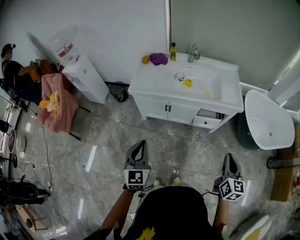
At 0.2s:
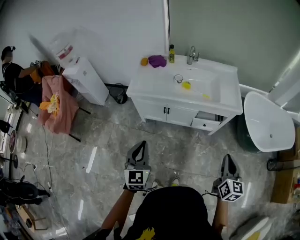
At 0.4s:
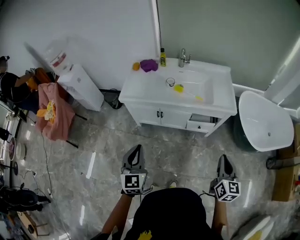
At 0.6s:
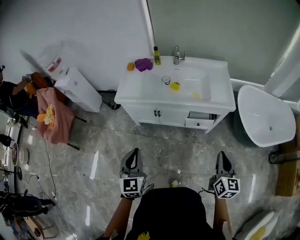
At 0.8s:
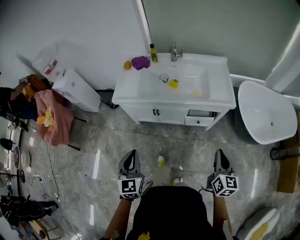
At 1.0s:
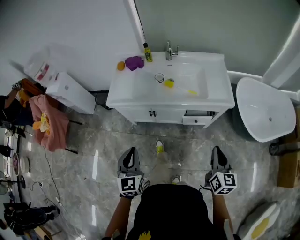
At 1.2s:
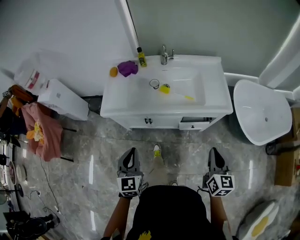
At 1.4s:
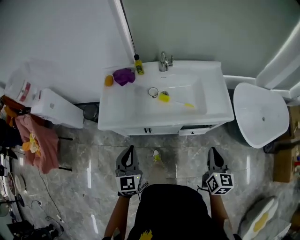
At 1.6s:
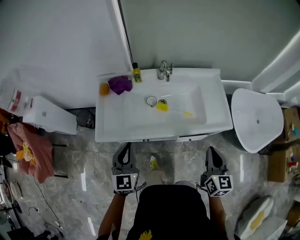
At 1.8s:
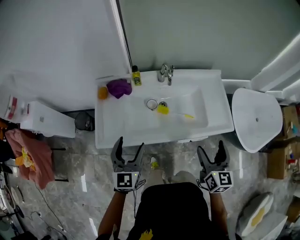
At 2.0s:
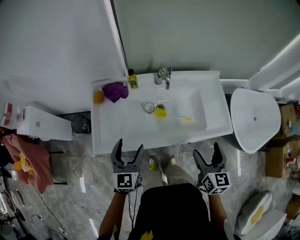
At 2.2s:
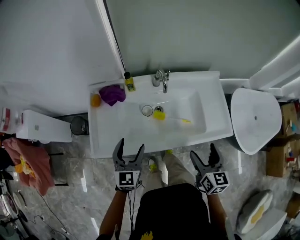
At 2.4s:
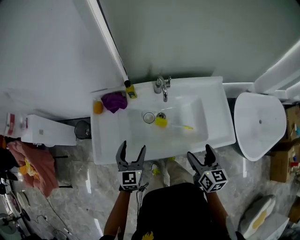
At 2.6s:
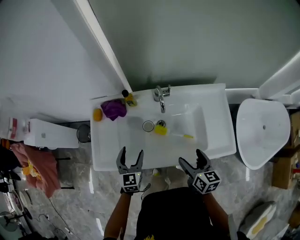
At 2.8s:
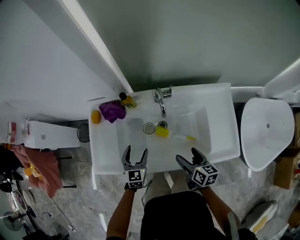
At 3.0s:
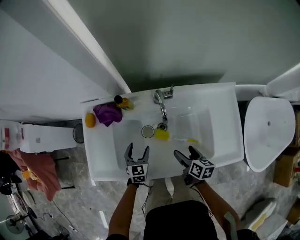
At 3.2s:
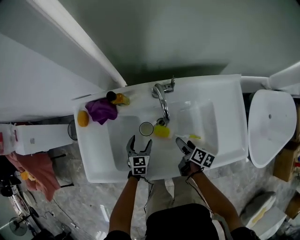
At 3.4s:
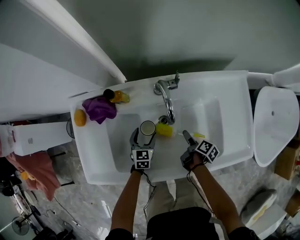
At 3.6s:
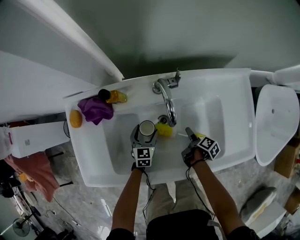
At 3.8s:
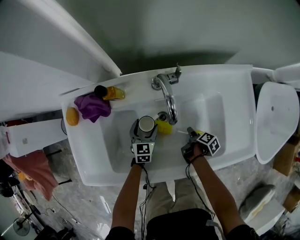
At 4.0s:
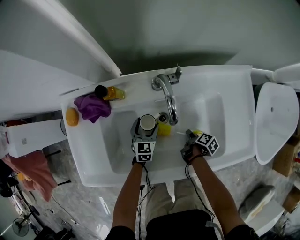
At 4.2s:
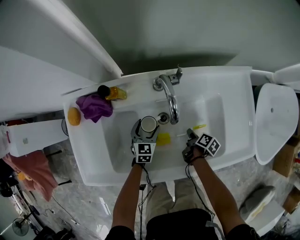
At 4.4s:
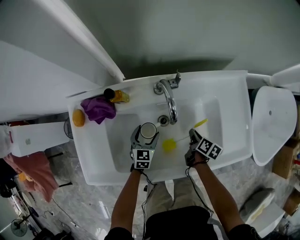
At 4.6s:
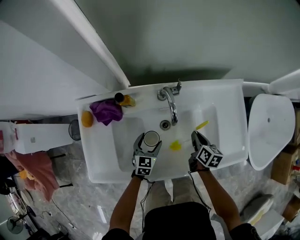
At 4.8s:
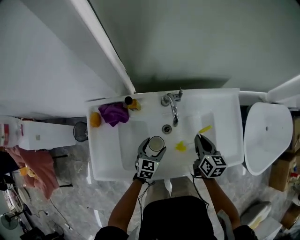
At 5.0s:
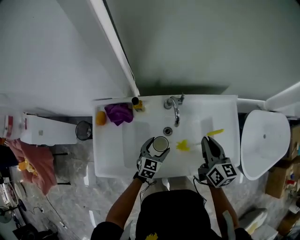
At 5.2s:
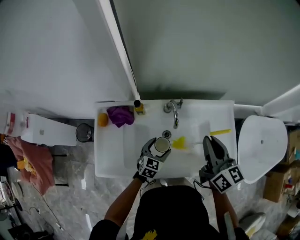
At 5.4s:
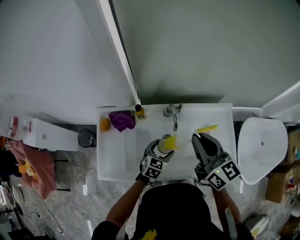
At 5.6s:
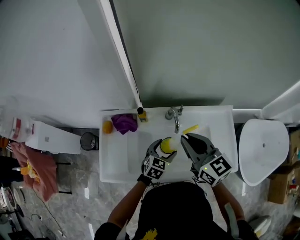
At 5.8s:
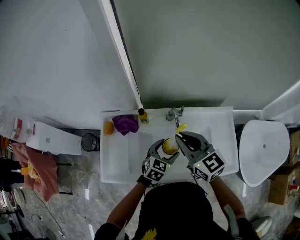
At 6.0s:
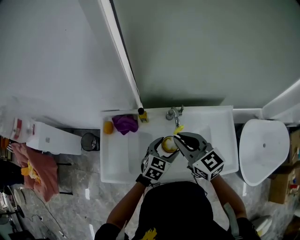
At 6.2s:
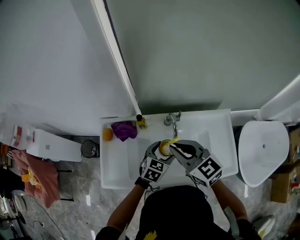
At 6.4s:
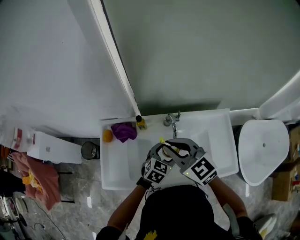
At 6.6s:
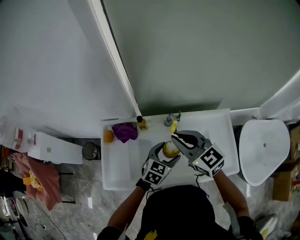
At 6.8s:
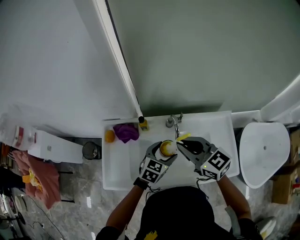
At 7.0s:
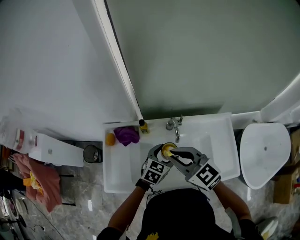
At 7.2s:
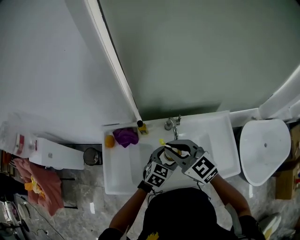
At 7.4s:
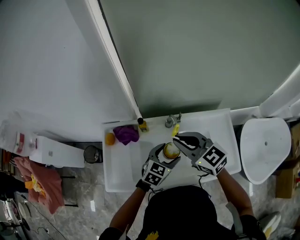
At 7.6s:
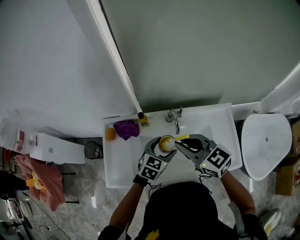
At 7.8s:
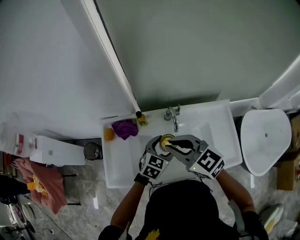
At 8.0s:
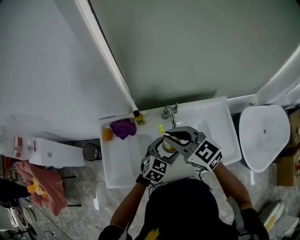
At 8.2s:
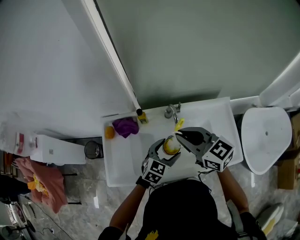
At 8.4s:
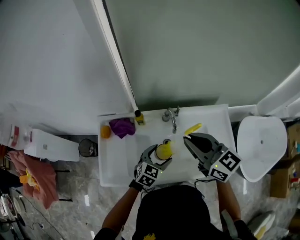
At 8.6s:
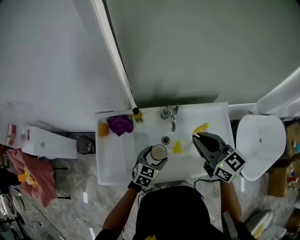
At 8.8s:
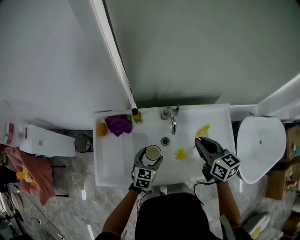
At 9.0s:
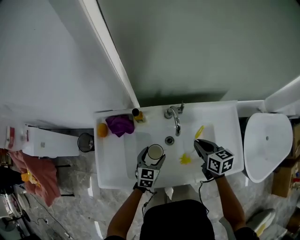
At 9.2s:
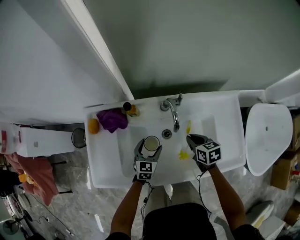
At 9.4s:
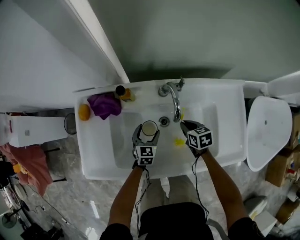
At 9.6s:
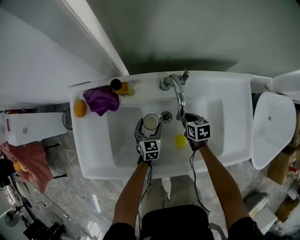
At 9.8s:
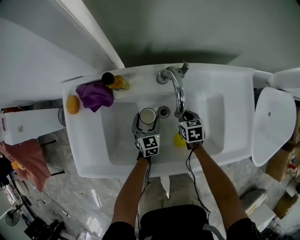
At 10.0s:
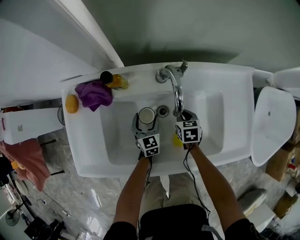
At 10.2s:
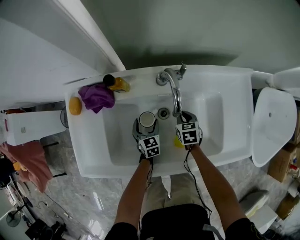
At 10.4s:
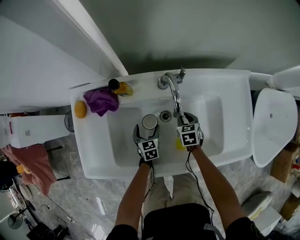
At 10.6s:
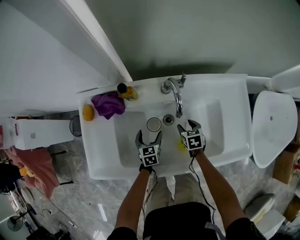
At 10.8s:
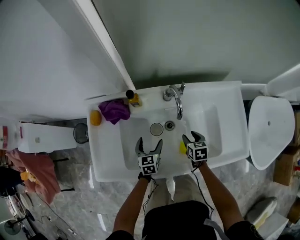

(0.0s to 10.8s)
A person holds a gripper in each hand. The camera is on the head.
0.0s - 1.6s: The two grippers go roughly 35 cm forward.
1.6s - 3.0s: The left gripper shifts about 40 cm downward and forward, swivels about 20 degrees, and opens its fingers; the right gripper travels forward and downward by approximately 40 cm, rotates about 40 degrees, and opens up.
3.0s - 4.6s: The right gripper heads forward, covering about 10 cm, goes downward and returns, approximately 25 cm each way, and closes up. Meanwhile the left gripper heads to the right, covering approximately 5 cm, and moves approximately 15 cm downward and comes back.
4.6s - 6.2s: The left gripper travels upward by about 25 cm; the right gripper is displaced upward and to the left by about 40 cm, and rolls counterclockwise, seen from behind, by approximately 50 degrees.
6.2s - 7.8s: The grippers make only small movements.
7.8s - 9.2s: The left gripper travels downward by about 20 cm, and turns by roughly 20 degrees. Meanwhile the right gripper heads downward and to the right, covering approximately 35 cm, and changes its angle by roughly 50 degrees.
9.2s - 10.8s: The left gripper reaches some 15 cm downward, then returns; the right gripper goes approximately 10 cm downward, and opens up.

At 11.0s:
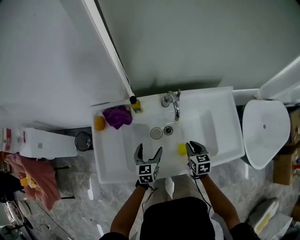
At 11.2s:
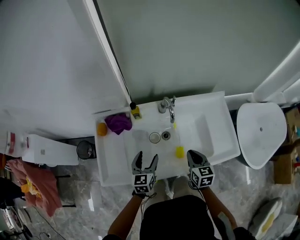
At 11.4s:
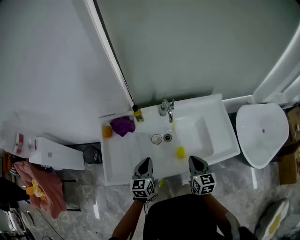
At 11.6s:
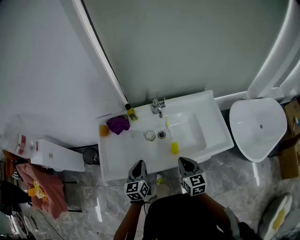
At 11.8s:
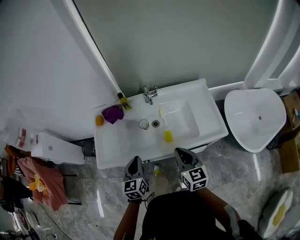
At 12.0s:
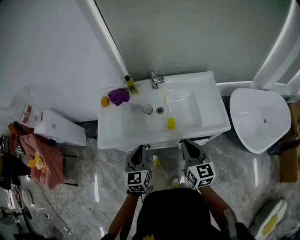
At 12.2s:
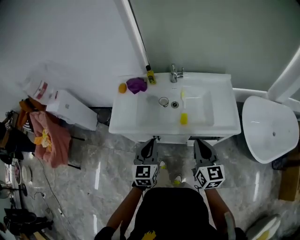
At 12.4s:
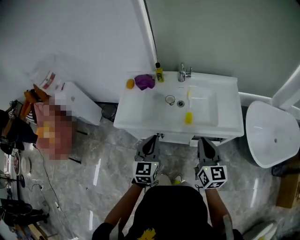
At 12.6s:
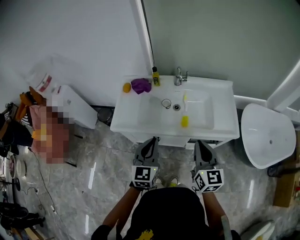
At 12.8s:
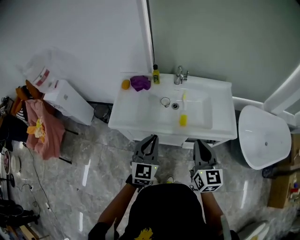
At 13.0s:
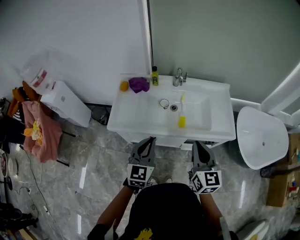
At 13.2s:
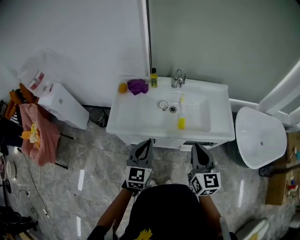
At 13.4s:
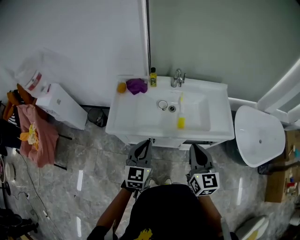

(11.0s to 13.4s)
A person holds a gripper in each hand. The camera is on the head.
11.0s - 12.2s: The two grippers go some 40 cm backward and upward. The right gripper tilts its fingers about 30 degrees upward; the left gripper closes its fingers.
12.2s - 13.4s: The grippers both shift to the left by some 10 cm.

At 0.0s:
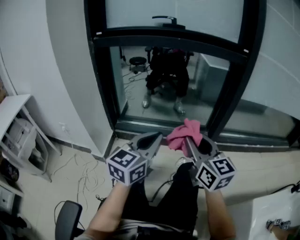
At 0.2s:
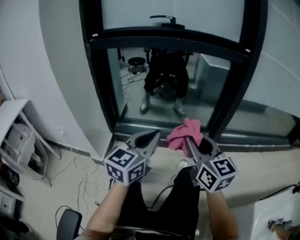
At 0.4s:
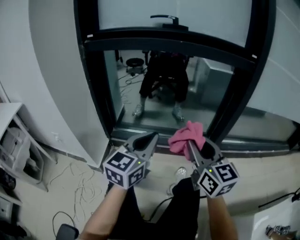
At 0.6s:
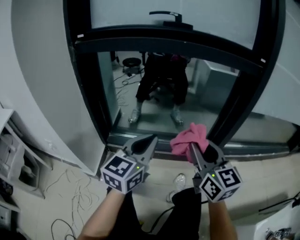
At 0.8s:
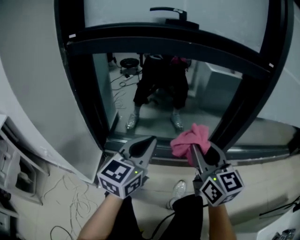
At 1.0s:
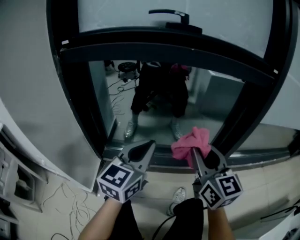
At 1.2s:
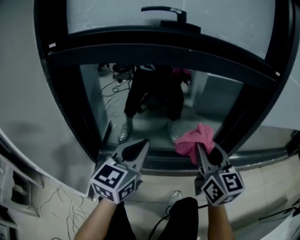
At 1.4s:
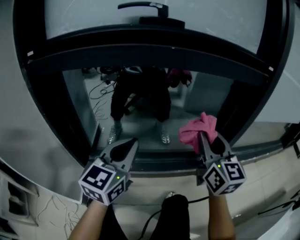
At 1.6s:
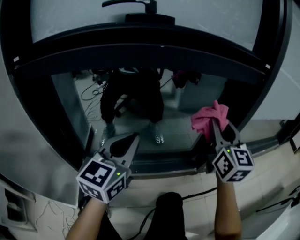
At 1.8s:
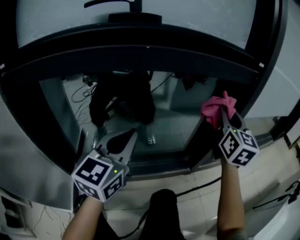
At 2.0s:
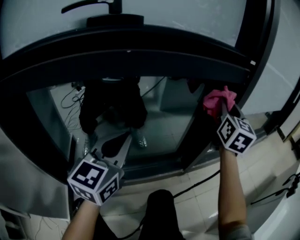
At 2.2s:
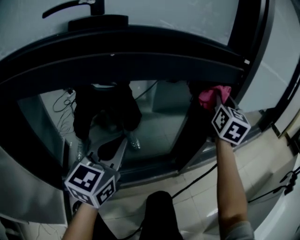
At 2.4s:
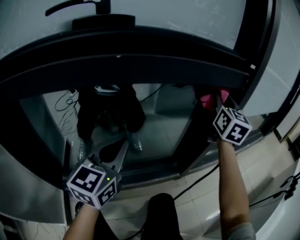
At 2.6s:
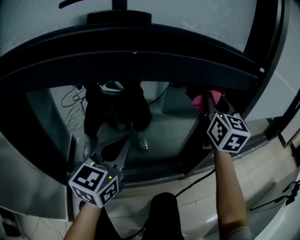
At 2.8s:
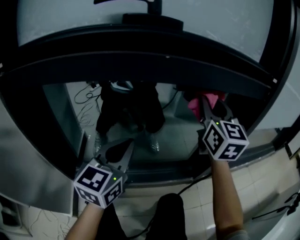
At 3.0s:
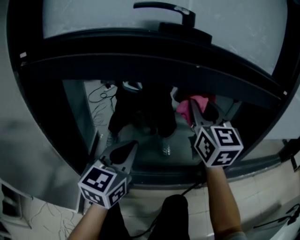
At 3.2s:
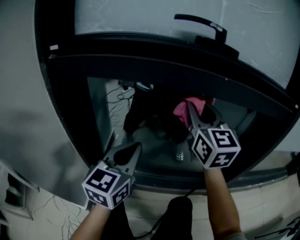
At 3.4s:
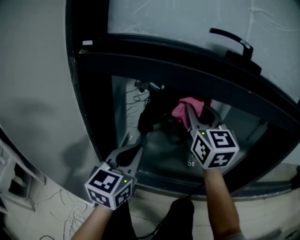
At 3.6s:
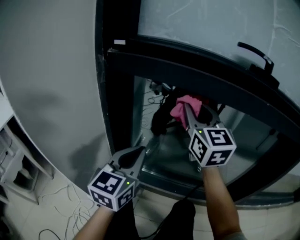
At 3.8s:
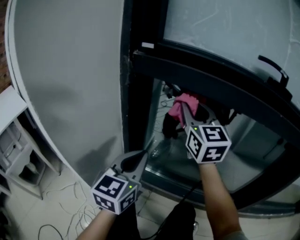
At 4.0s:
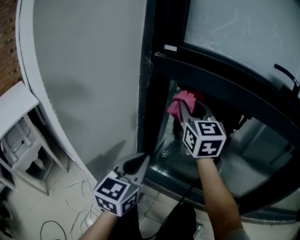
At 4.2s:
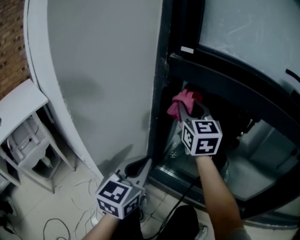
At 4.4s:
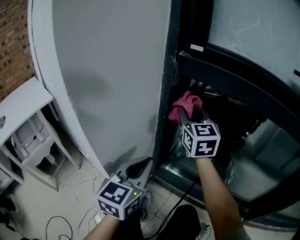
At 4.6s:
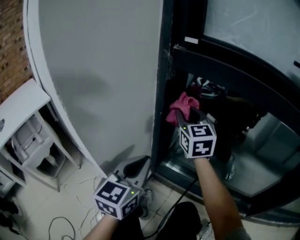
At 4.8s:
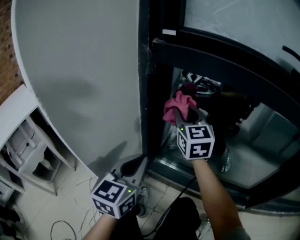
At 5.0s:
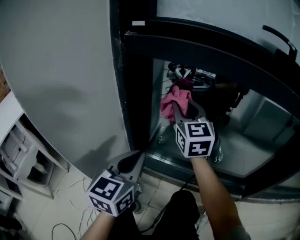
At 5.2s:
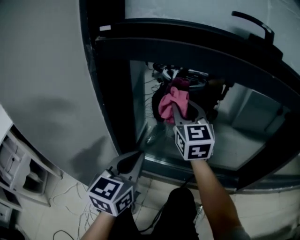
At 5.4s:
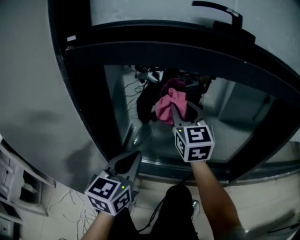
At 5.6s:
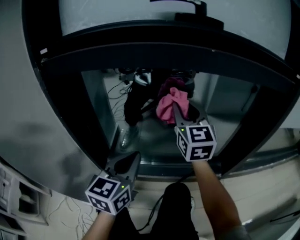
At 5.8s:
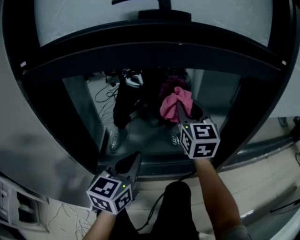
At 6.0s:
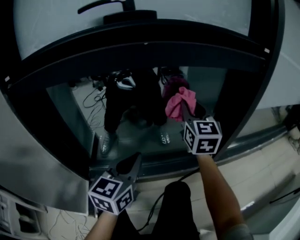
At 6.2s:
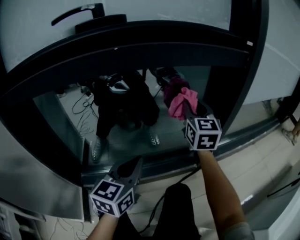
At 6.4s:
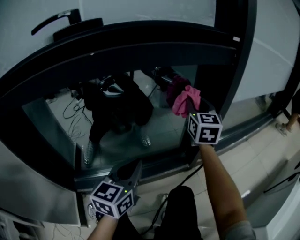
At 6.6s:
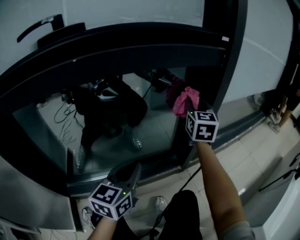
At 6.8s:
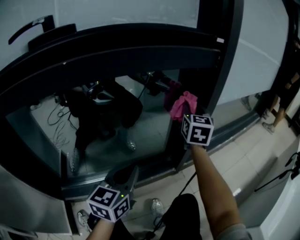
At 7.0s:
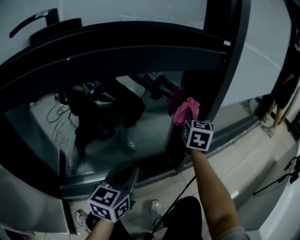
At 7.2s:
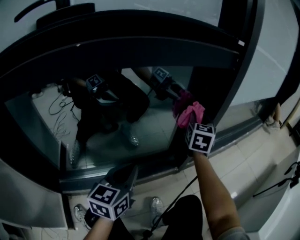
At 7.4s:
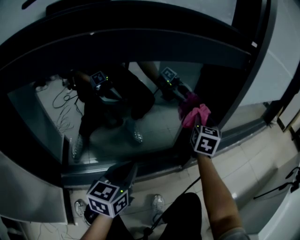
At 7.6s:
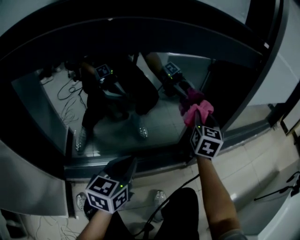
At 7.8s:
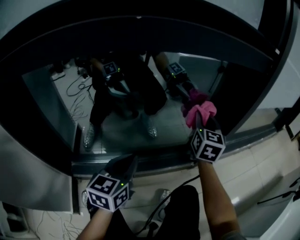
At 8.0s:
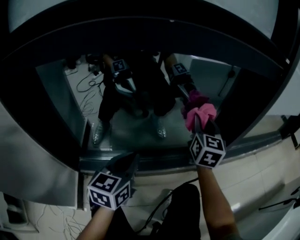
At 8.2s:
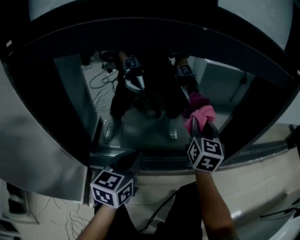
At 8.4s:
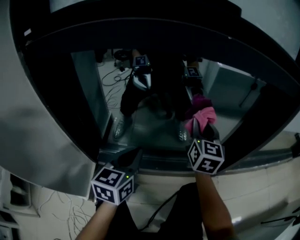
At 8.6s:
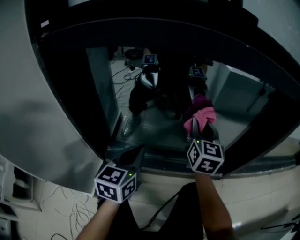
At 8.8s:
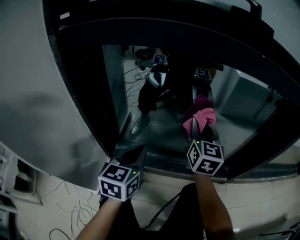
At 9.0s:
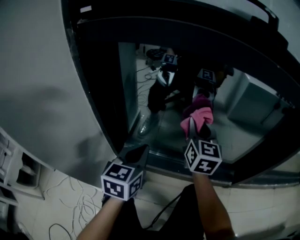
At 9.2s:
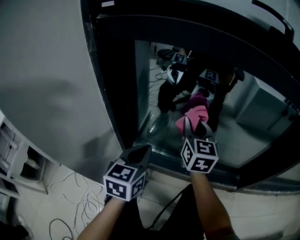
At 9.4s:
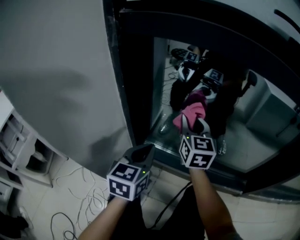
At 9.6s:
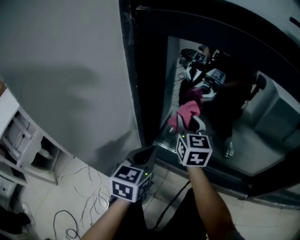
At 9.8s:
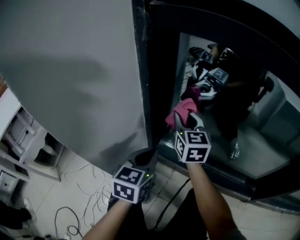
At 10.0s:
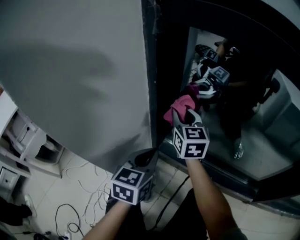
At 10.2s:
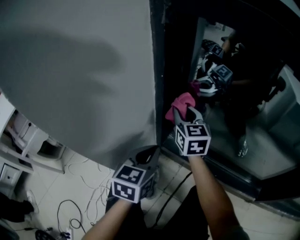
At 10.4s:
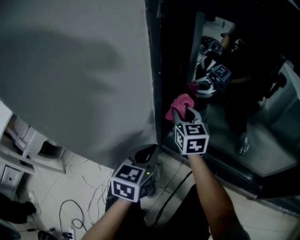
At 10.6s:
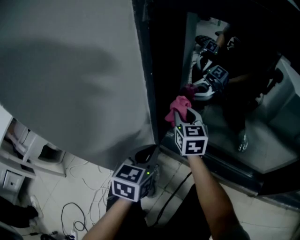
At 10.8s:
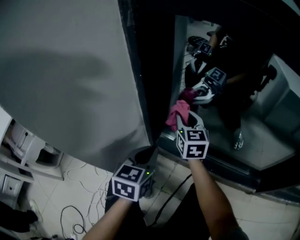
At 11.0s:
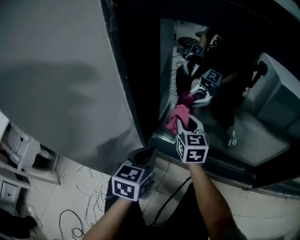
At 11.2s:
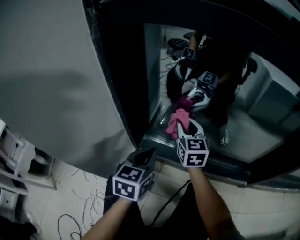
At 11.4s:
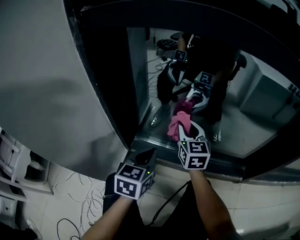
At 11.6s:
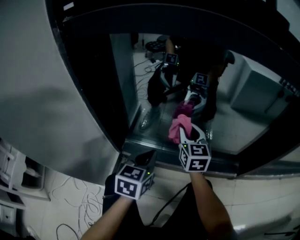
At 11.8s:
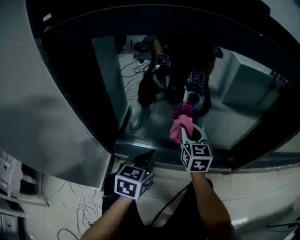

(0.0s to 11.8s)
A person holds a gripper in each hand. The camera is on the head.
0.0s - 1.4s: The two grippers go about 30 cm forward. The right gripper turns by about 20 degrees.
3.0s - 4.4s: The right gripper moves approximately 50 cm, and swivels about 30 degrees; the left gripper ends up roughly 35 cm from where it was, and turns by approximately 30 degrees.
4.4s - 6.0s: The right gripper moves roughly 60 cm, and swivels approximately 40 degrees, while the left gripper moves about 40 cm, and rotates approximately 40 degrees.
6.0s - 7.4s: The left gripper is displaced forward, to the right and downward by about 15 cm; the right gripper heads to the right, forward and downward, covering roughly 25 cm, and changes its angle by about 30 degrees.
7.4s - 8.8s: The right gripper ends up roughly 40 cm from where it was, and swivels some 40 degrees. The left gripper shifts by about 30 cm, and turns by roughly 30 degrees.
8.8s - 10.4s: The right gripper moves about 40 cm, and rotates about 40 degrees, while the left gripper moves about 20 cm, and rotates approximately 20 degrees.
10.4s - 11.8s: The right gripper moves approximately 35 cm, and turns by approximately 30 degrees, while the left gripper changes place by about 25 cm, and swivels some 20 degrees.
